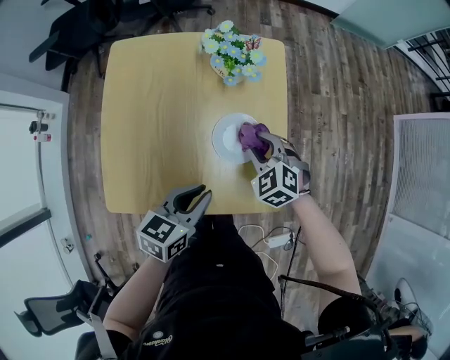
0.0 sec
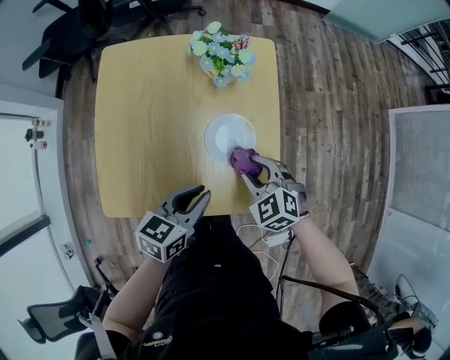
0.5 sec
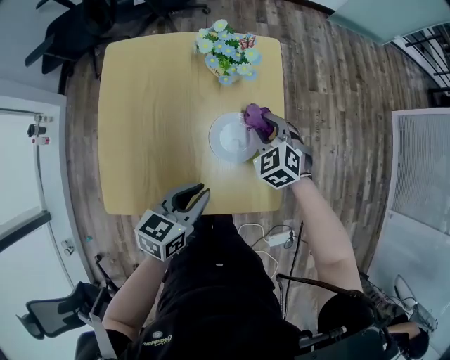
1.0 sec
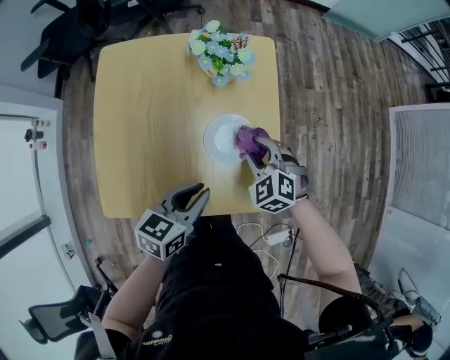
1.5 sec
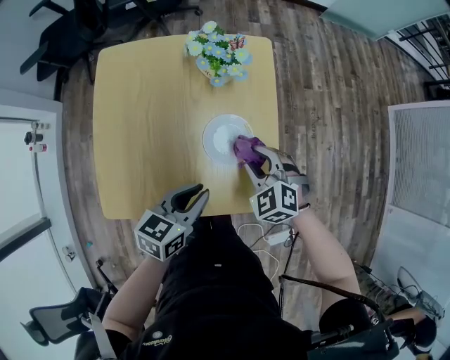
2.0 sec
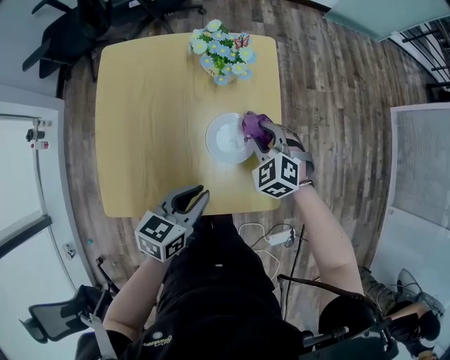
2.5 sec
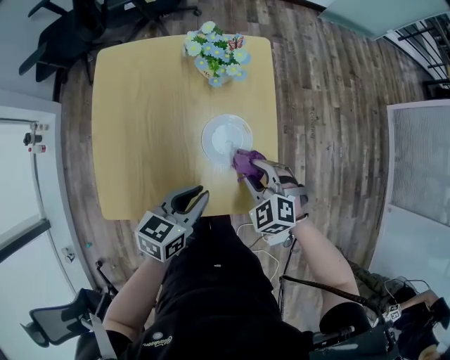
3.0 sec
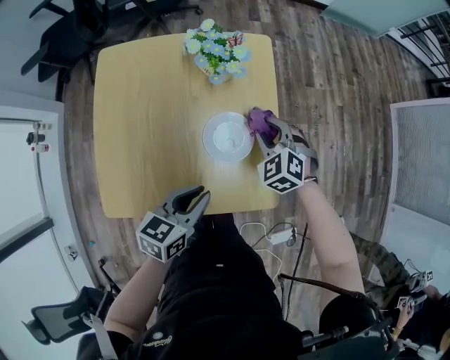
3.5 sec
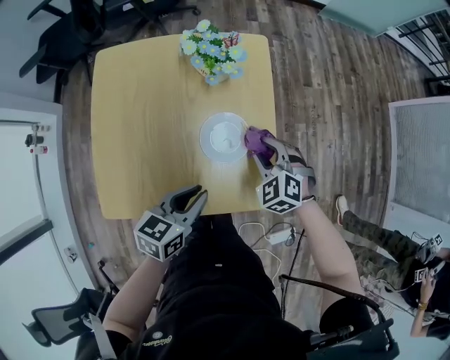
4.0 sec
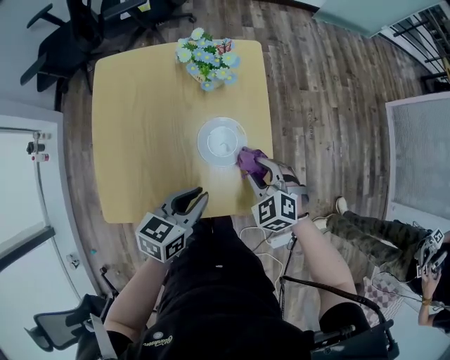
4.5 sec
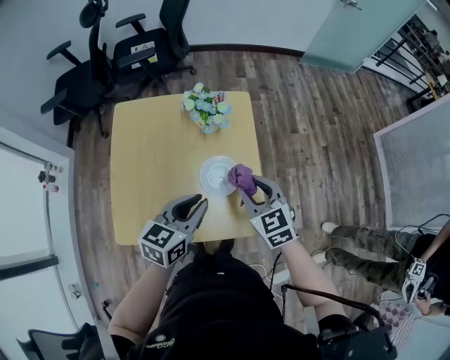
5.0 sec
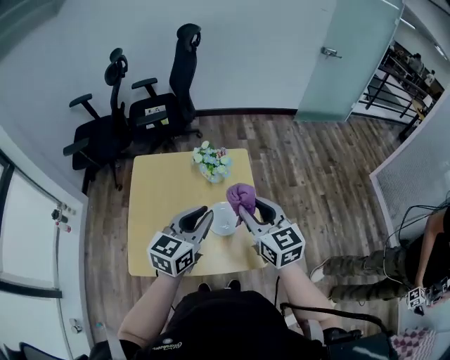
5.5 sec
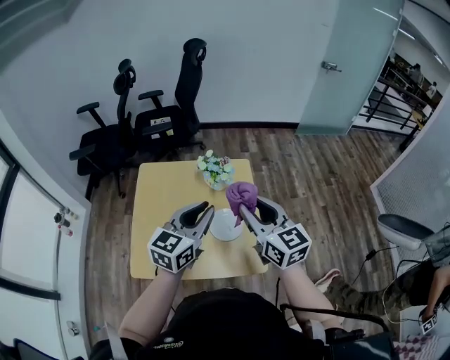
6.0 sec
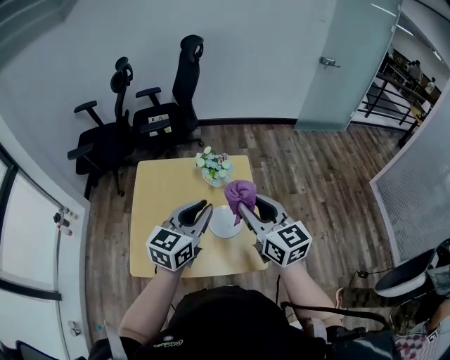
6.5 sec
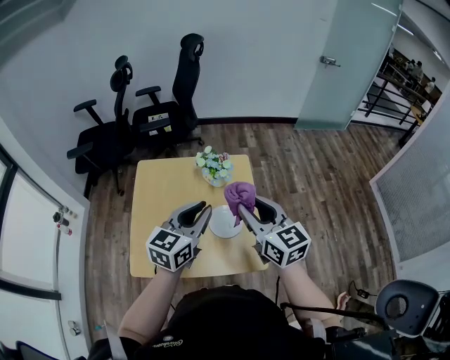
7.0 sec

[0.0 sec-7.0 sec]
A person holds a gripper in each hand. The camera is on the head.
0.0 sec to 2.0 sec: The right gripper moves forward and backward over approximately 10 cm, changing direction 2 times.
2.0 sec to 3.5 sec: The right gripper goes forward and backward, approximately 10 cm each way, reversing 2 times.
3.5 sec to 5.0 sec: The right gripper moves upward and backward, approximately 15 cm, and changes its angle by approximately 40 degrees; the left gripper travels upward by approximately 10 cm.
5.0 sec to 7.0 sec: The two grippers go about 15 cm upward. The right gripper changes its angle by some 30 degrees.

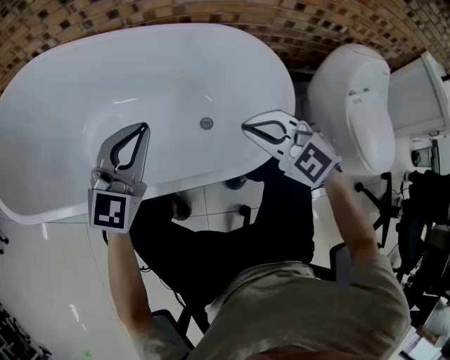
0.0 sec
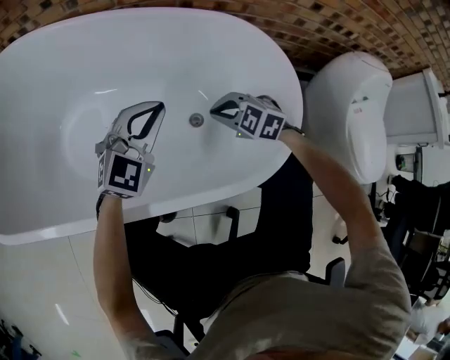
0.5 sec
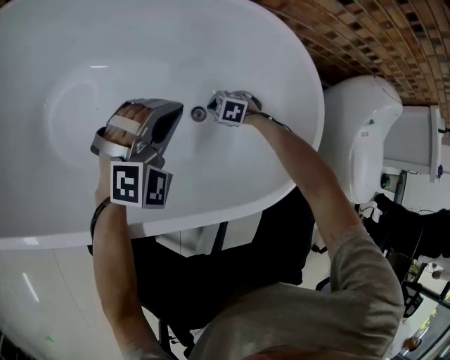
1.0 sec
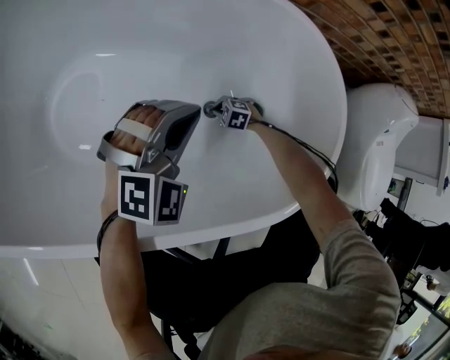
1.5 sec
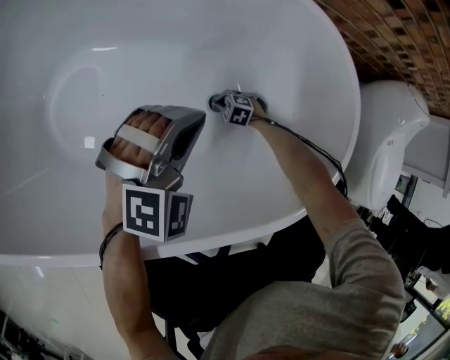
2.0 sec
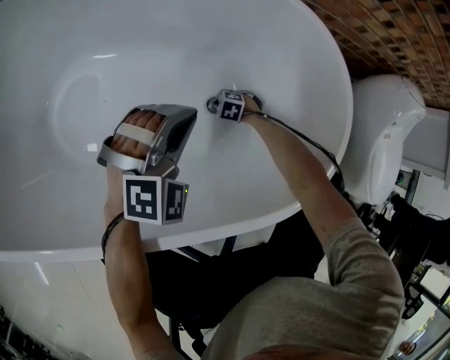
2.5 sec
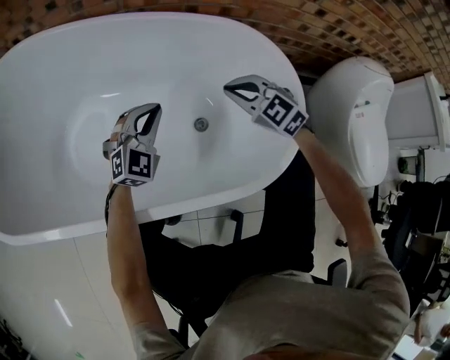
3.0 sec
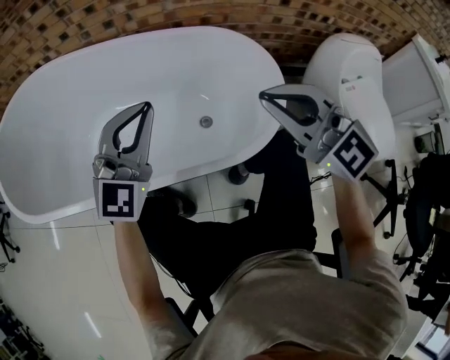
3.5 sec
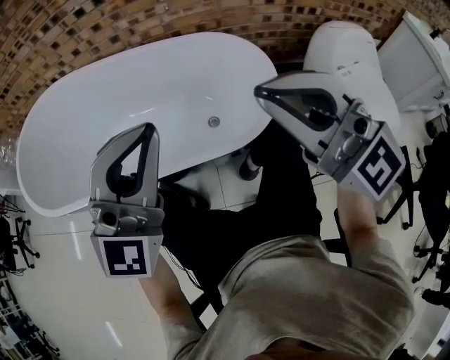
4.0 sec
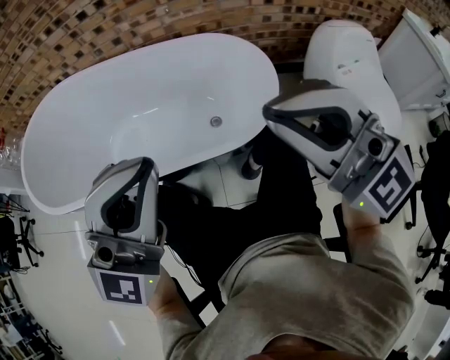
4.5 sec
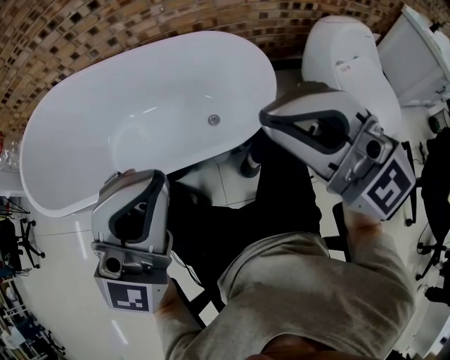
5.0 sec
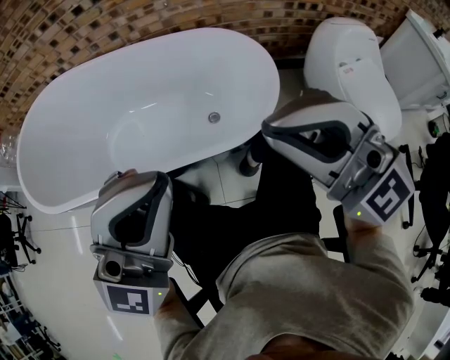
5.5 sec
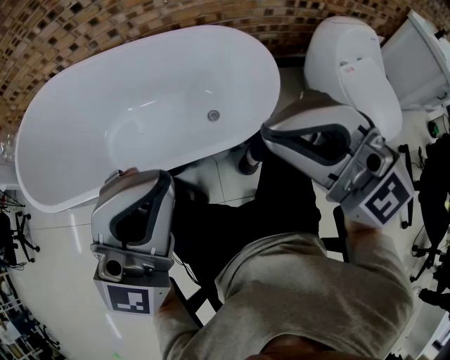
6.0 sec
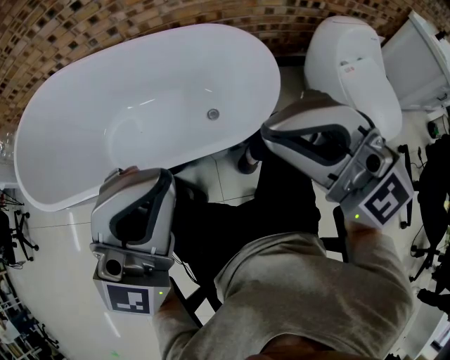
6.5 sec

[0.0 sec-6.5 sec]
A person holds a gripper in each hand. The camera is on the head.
0.0 sec to 2.0 sec: The right gripper heads downward, covering some 60 cm, and points its fingers approximately 50 degrees further downward, while the left gripper is displaced downward by some 20 cm, and swivels roughly 30 degrees.
2.0 sec to 4.5 sec: The right gripper goes roughly 80 cm upward, and angles its fingers upward, by some 90 degrees, while the left gripper is displaced upward by some 40 cm, and points its fingers about 50 degrees further upward.
4.5 sec to 6.5 sec: The grippers move only a little.

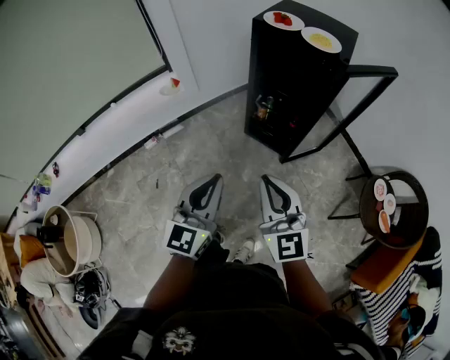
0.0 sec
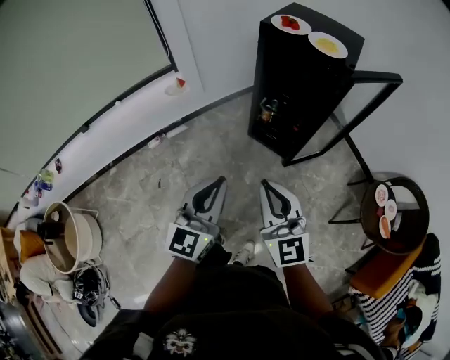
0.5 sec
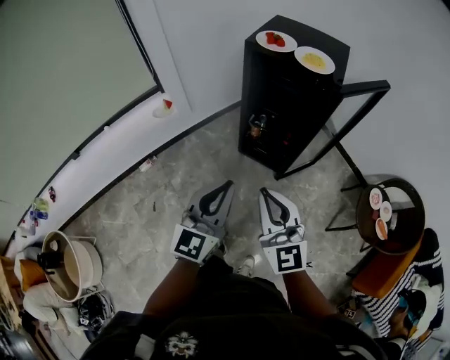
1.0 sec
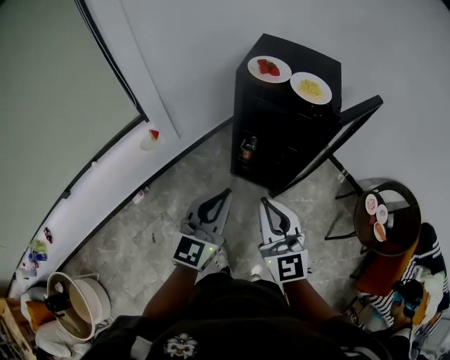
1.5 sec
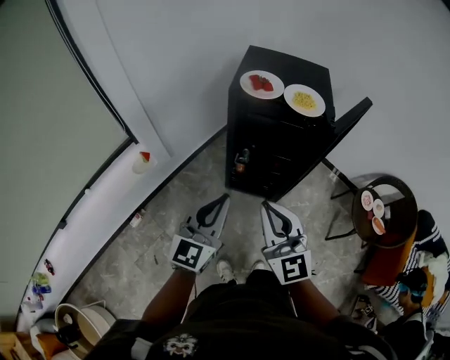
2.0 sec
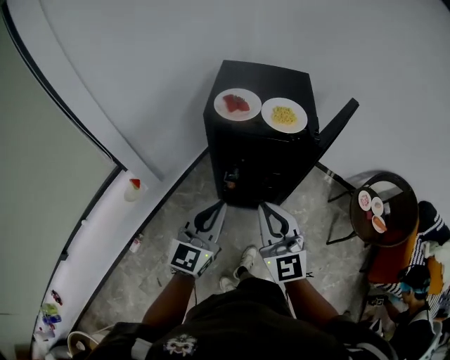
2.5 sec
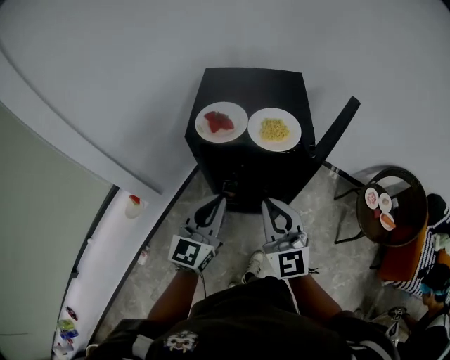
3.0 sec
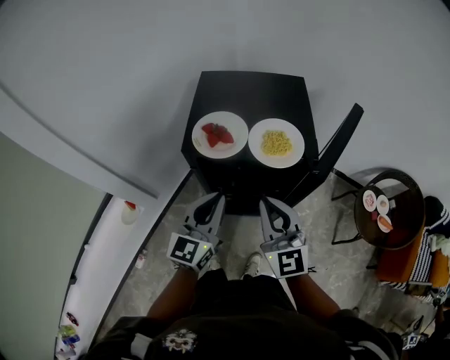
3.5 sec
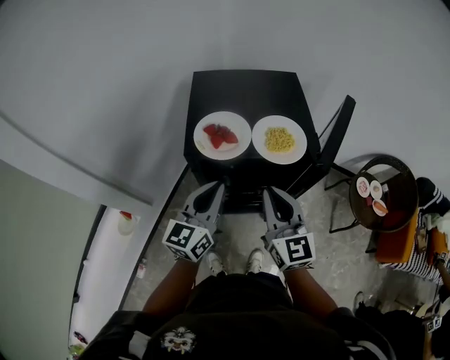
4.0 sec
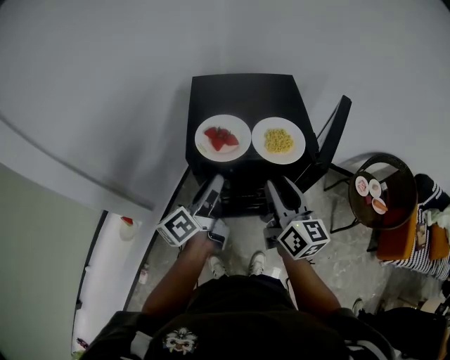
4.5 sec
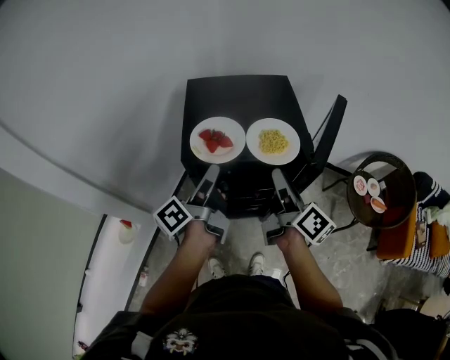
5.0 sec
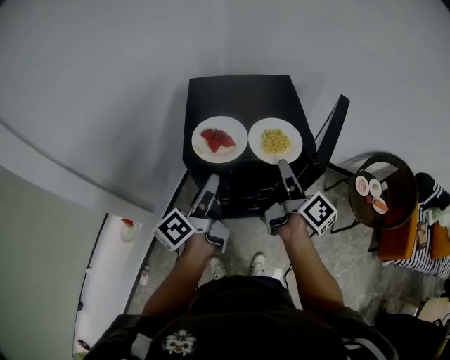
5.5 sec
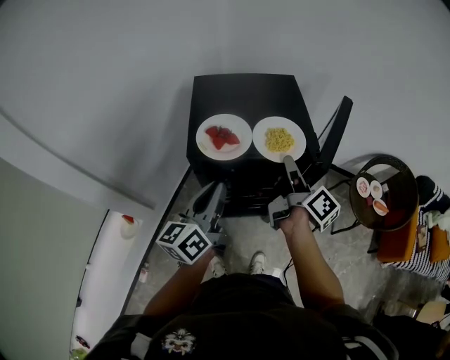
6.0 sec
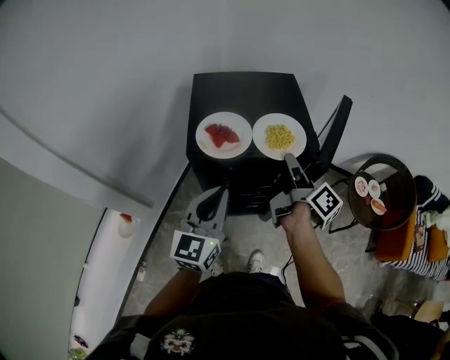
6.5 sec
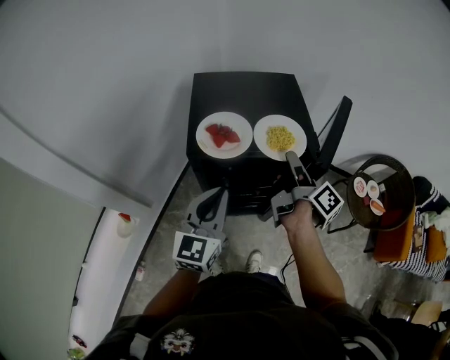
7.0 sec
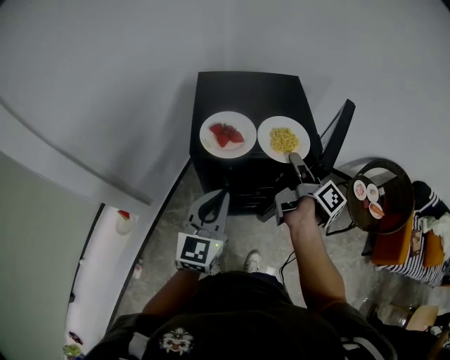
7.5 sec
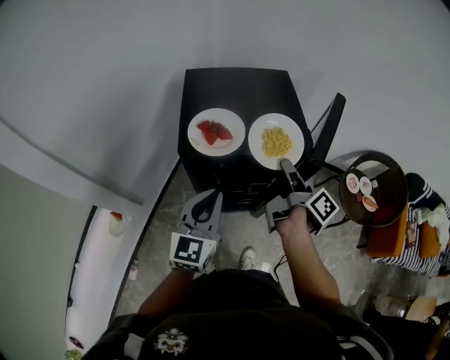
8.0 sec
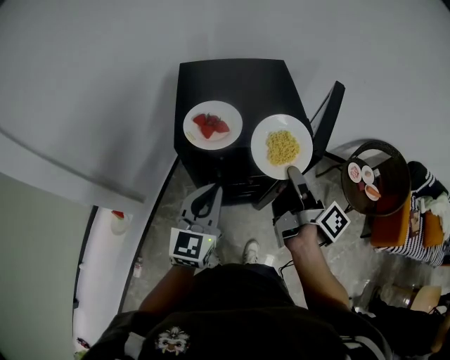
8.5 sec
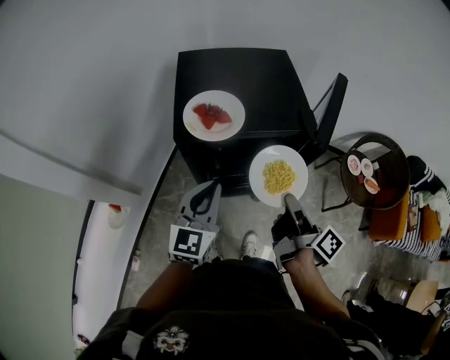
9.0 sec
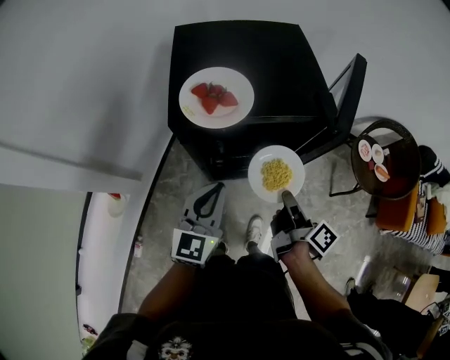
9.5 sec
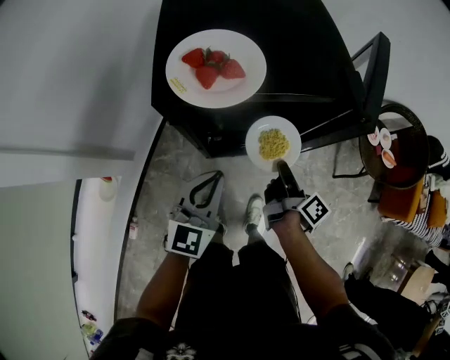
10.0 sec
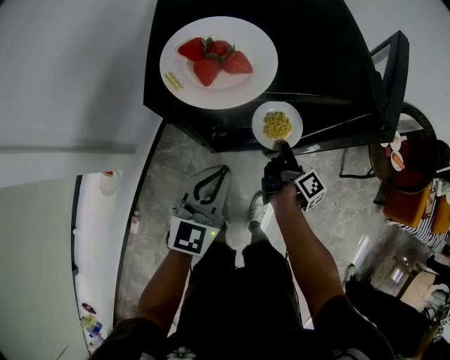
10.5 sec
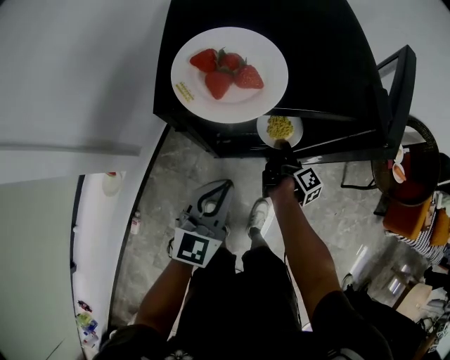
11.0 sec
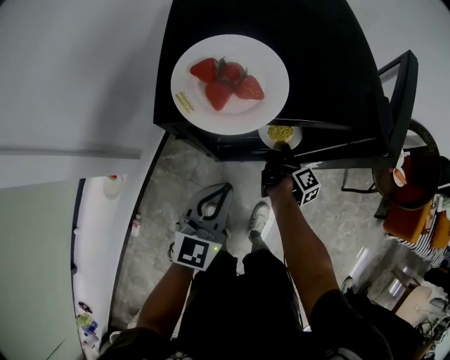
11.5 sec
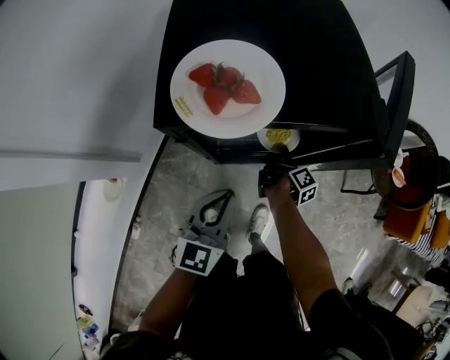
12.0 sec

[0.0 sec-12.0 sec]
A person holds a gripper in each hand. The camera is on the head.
0.0 sec to 2.0 sec: Both grippers move forward, about 20 cm. The left gripper rotates some 20 degrees.
2.0 sec to 4.0 sec: The two grippers go some 25 cm forward. The right gripper changes its angle by about 20 degrees. The left gripper swivels about 20 degrees.
4.0 sec to 6.0 sec: The left gripper turns by some 20 degrees, and opens, then closes once more. The right gripper travels forward and to the right by about 10 cm, twists roughly 70 degrees clockwise, seen from behind, and opens, then closes again.
6.0 sec to 8.0 sec: The left gripper swivels about 30 degrees.
8.0 sec to 10.0 sec: The left gripper heads downward, covering approximately 15 cm. Meanwhile the right gripper moves downward, some 25 cm.
10.0 sec to 12.0 sec: The right gripper travels downward and forward by some 15 cm.

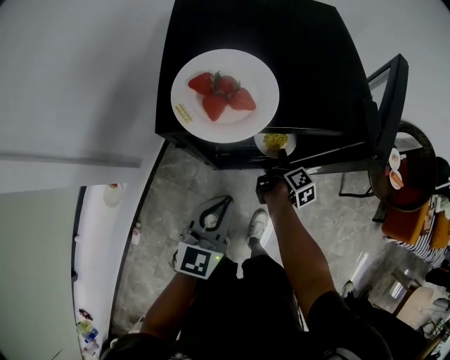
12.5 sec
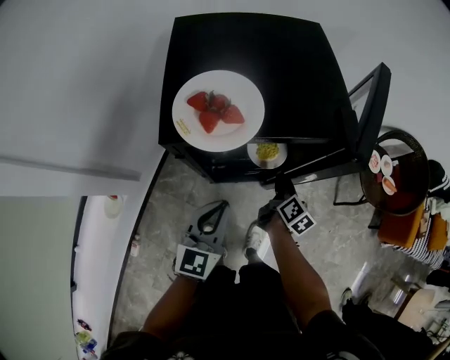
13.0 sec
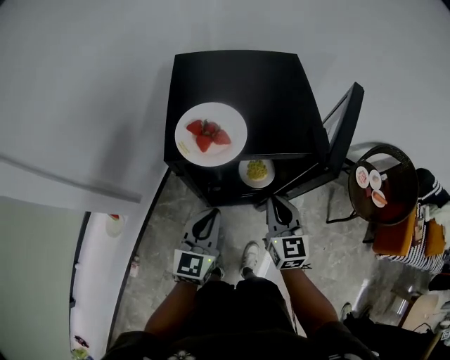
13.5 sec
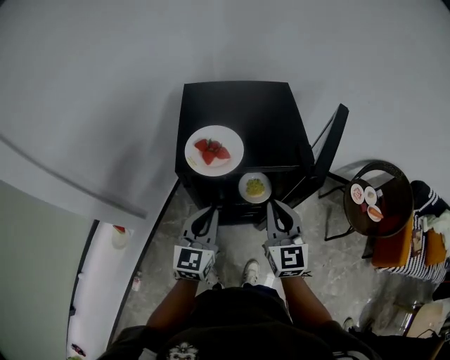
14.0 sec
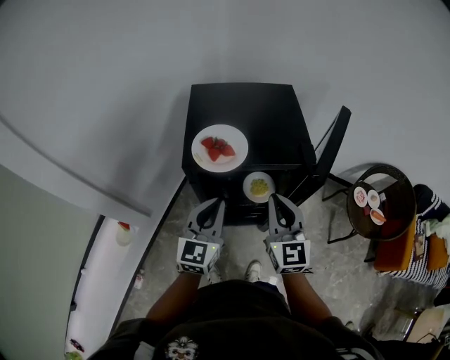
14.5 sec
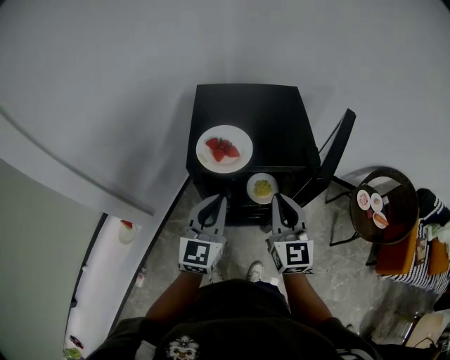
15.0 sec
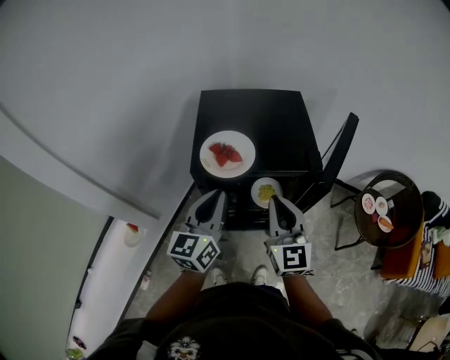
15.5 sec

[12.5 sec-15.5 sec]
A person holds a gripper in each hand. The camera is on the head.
12.5 sec to 14.0 sec: The right gripper goes roughly 35 cm upward, rolls counterclockwise, seen from behind, by roughly 80 degrees, and closes; the left gripper moves upward, approximately 10 cm.
14.0 sec to 15.5 sec: The left gripper is displaced upward by roughly 10 cm. The right gripper shifts by approximately 5 cm.
